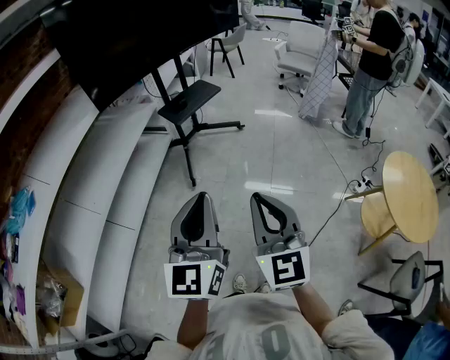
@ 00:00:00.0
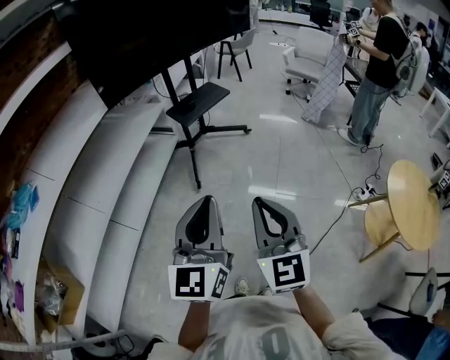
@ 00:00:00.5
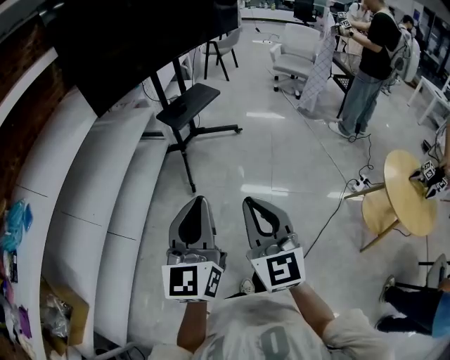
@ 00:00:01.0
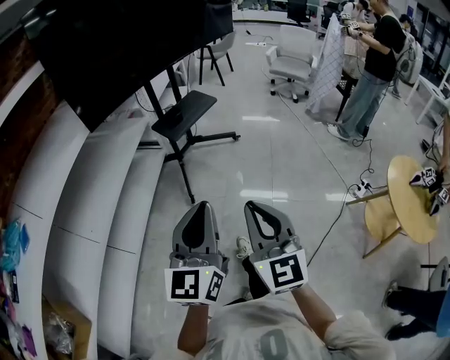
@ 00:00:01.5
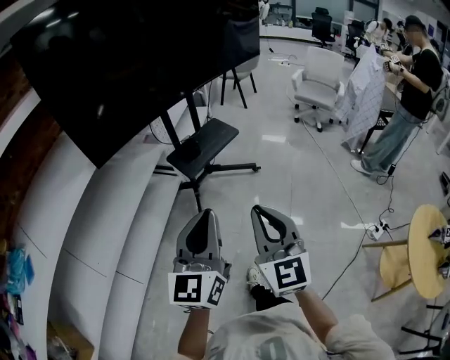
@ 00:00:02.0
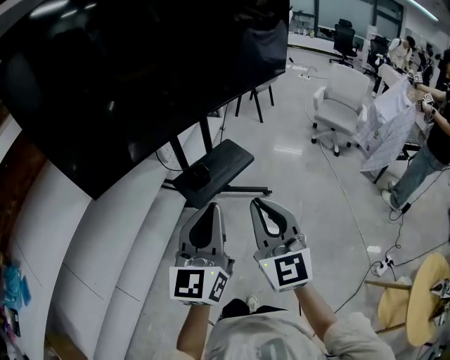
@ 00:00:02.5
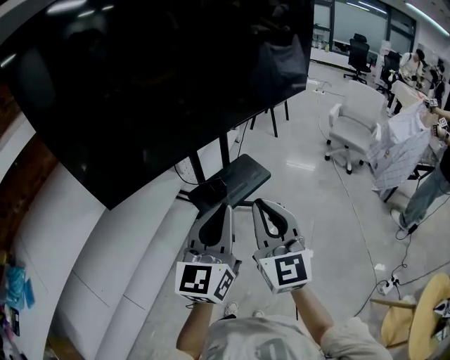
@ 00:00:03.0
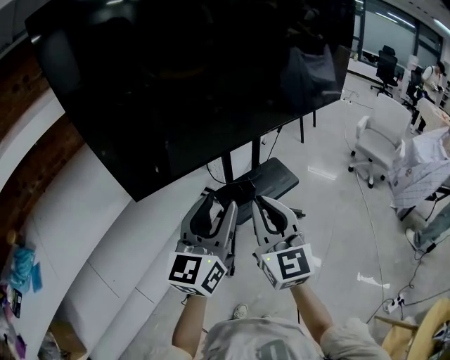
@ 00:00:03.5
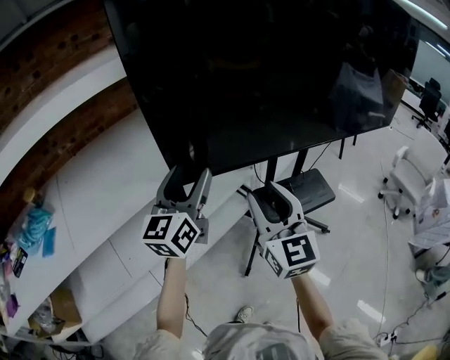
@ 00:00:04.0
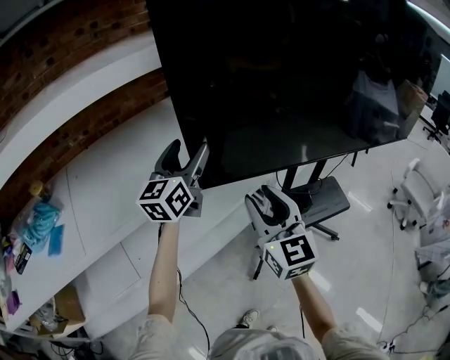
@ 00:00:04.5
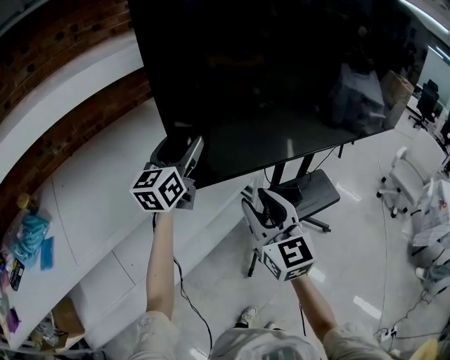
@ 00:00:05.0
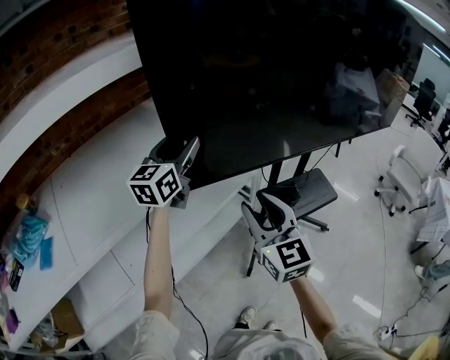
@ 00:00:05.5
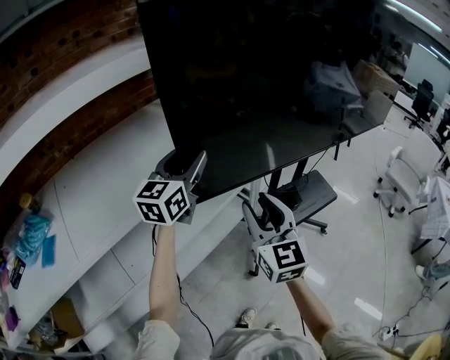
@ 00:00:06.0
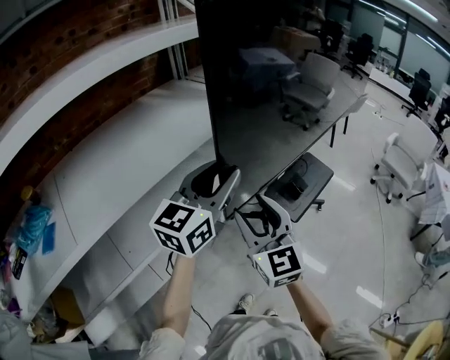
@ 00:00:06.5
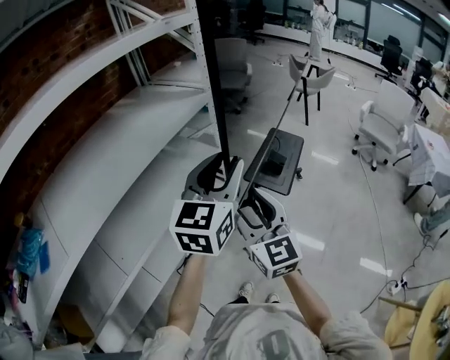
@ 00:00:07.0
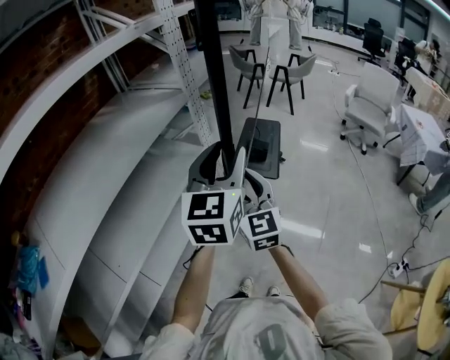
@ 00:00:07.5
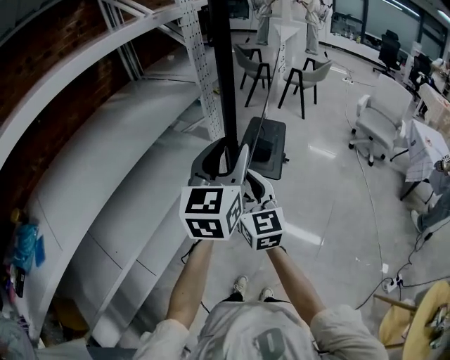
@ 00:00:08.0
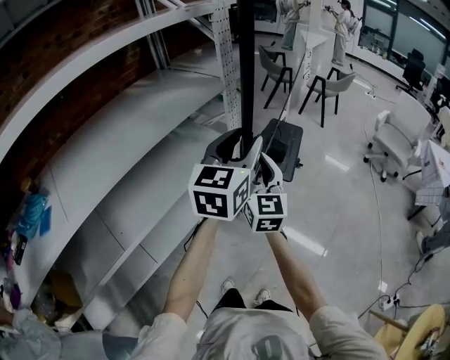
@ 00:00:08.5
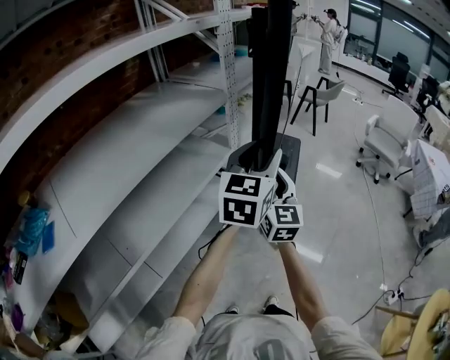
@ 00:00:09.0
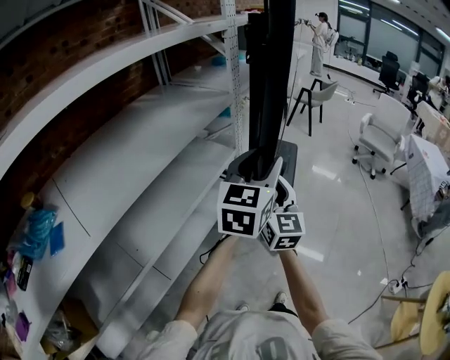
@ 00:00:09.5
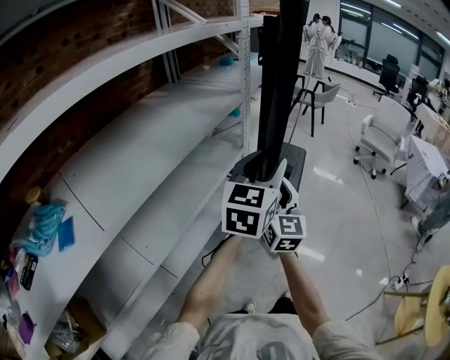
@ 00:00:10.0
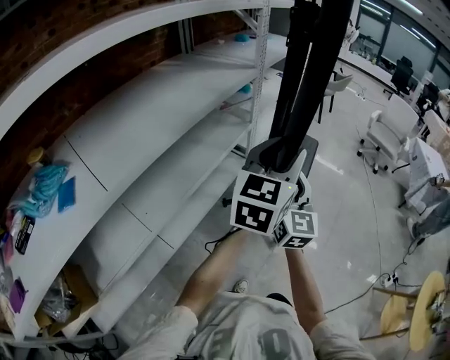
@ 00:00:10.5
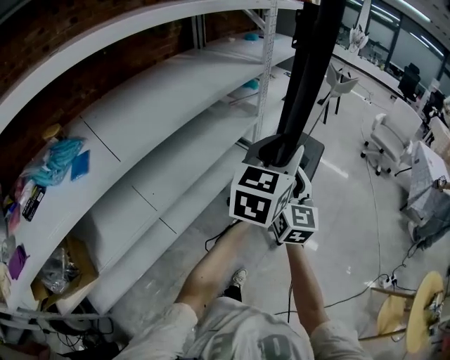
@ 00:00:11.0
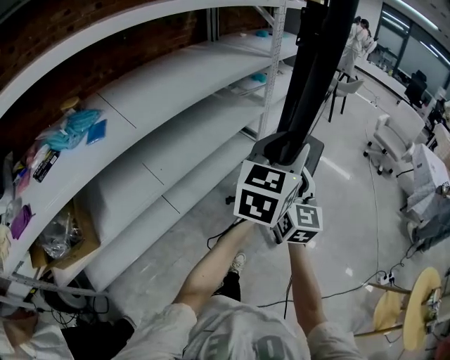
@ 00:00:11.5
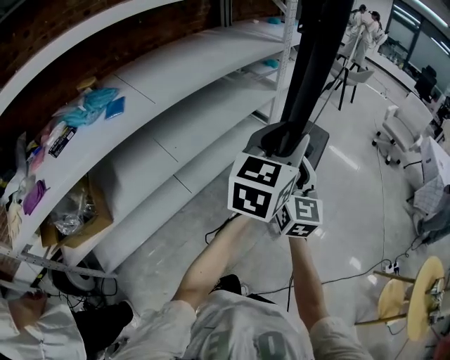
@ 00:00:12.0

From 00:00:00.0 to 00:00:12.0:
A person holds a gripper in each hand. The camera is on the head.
From 00:00:00.0 to 00:00:02.0: The grippers both shift forward by roughly 30 cm.
From 00:00:02.0 to 00:00:04.0: The pair of grippers is taken some 40 cm. The left gripper rotates roughly 20 degrees, and opens up. Meanwhile the right gripper turns by roughly 30 degrees, and opens.
From 00:00:04.0 to 00:00:06.0: The left gripper goes about 5 cm forward; the right gripper moves to the left, roughly 5 cm.
From 00:00:06.0 to 00:00:08.0: The left gripper is displaced to the right and backward by some 35 cm, while the right gripper shifts some 15 cm to the right.
From 00:00:08.0 to 00:00:10.0: The right gripper is displaced to the left and backward by approximately 15 cm. Meanwhile the left gripper heads backward and to the left, covering about 20 cm.
From 00:00:10.0 to 00:00:12.0: Both grippers move backward, roughly 35 cm.

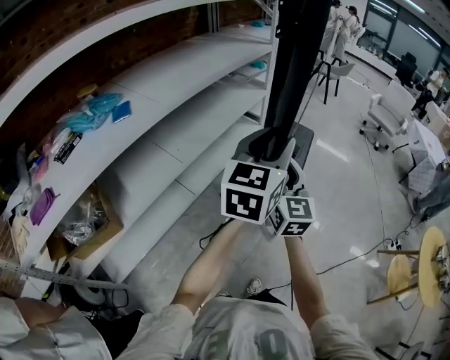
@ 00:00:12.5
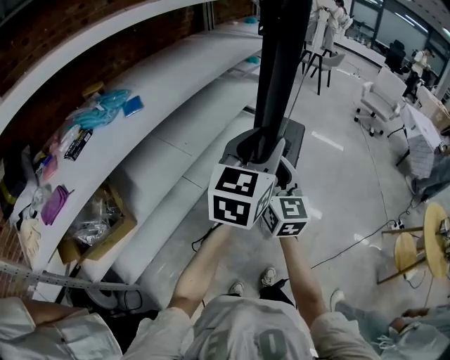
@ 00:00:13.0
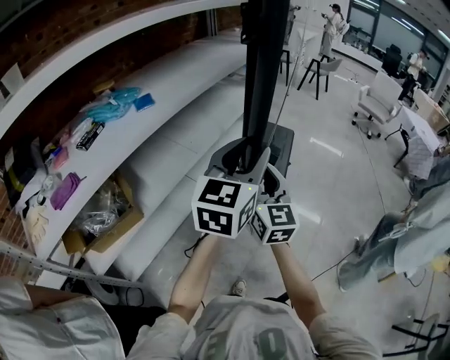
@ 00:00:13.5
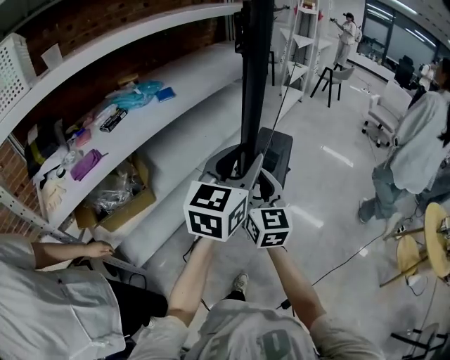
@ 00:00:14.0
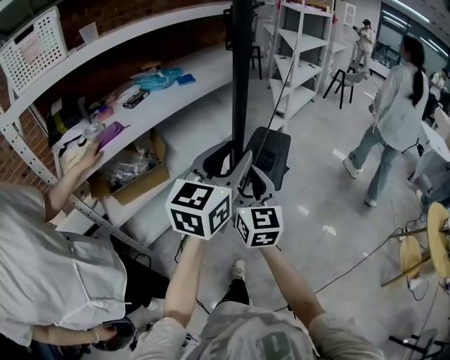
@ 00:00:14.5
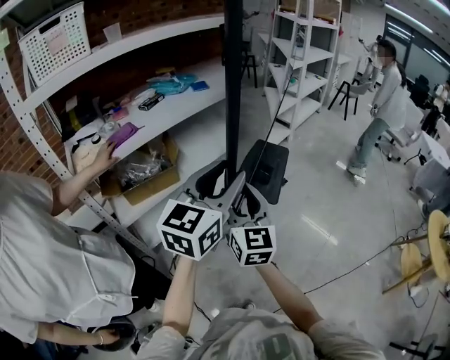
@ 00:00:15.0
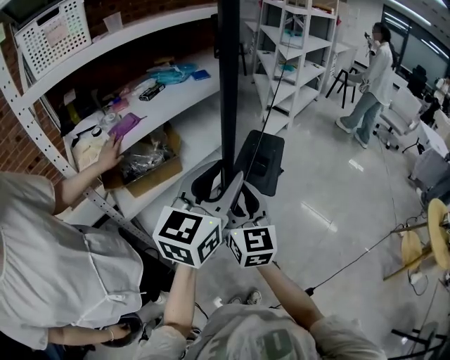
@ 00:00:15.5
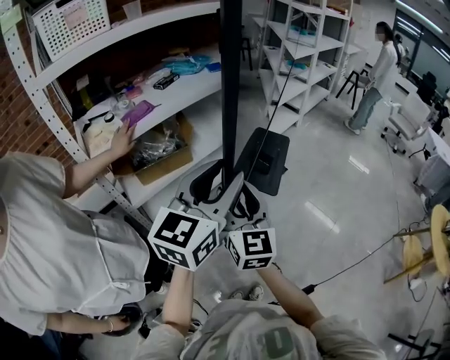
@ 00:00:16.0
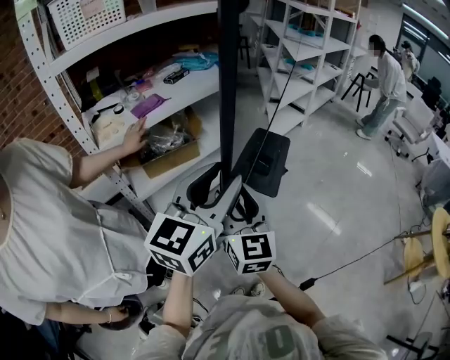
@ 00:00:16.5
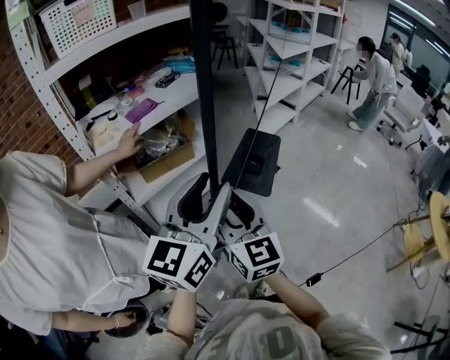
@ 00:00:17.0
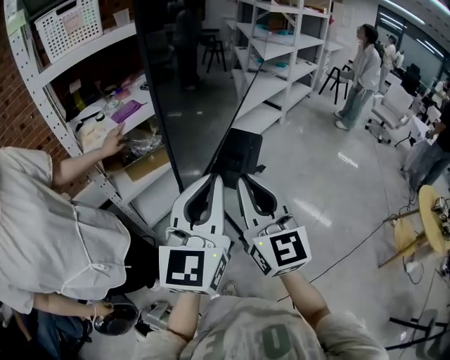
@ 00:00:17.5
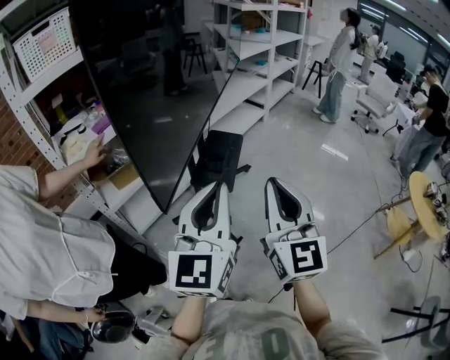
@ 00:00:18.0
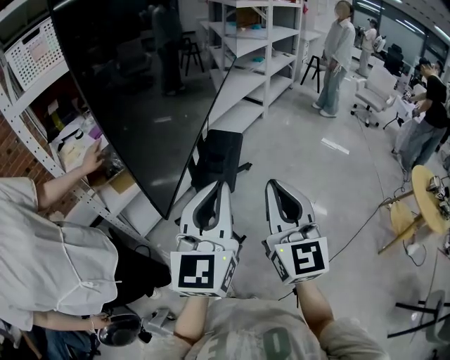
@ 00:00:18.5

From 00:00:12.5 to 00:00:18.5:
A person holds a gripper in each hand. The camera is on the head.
From 00:00:12.5 to 00:00:14.5: The pair of grippers is taken backward and to the left, about 40 cm.
From 00:00:14.5 to 00:00:16.5: The grippers both shift backward and to the left by roughly 25 cm.
From 00:00:16.5 to 00:00:18.5: The right gripper heads to the right, covering approximately 25 cm, and closes. Meanwhile the left gripper is displaced to the right and backward by about 15 cm, and closes its fingers.

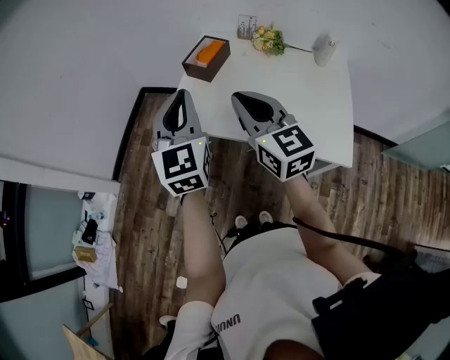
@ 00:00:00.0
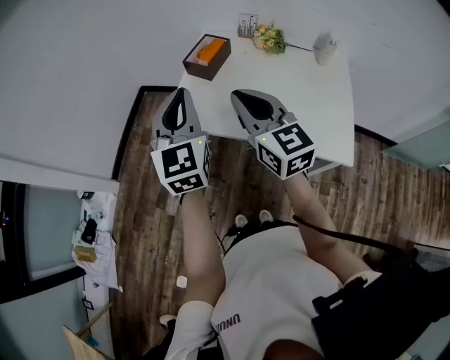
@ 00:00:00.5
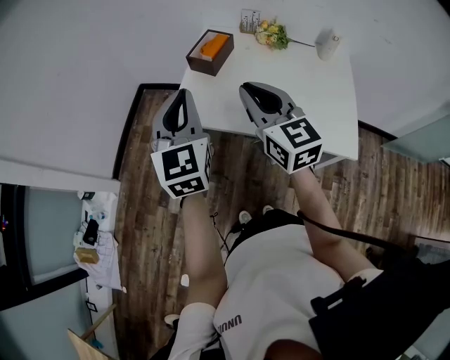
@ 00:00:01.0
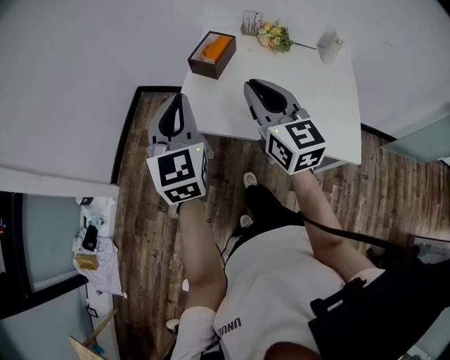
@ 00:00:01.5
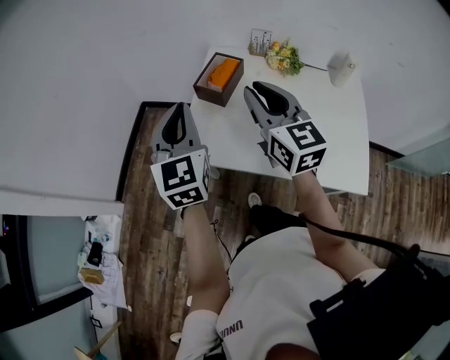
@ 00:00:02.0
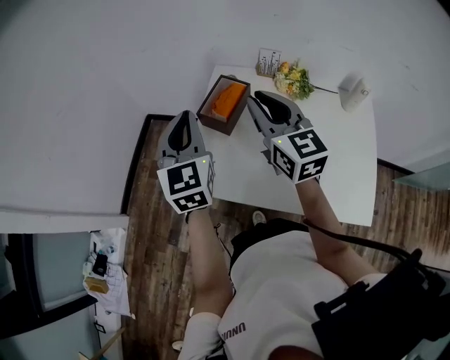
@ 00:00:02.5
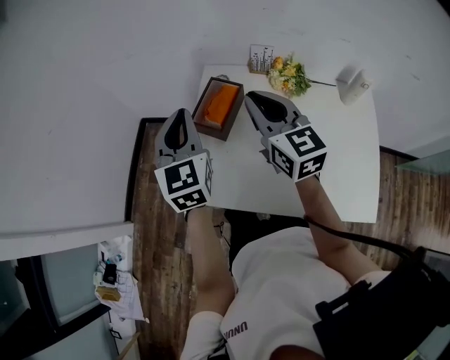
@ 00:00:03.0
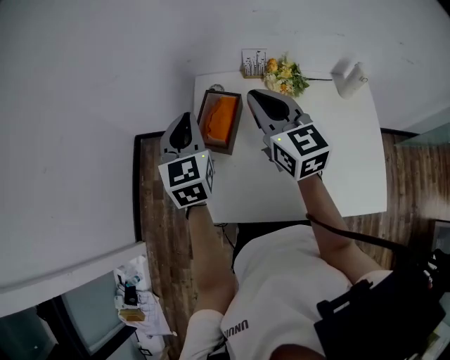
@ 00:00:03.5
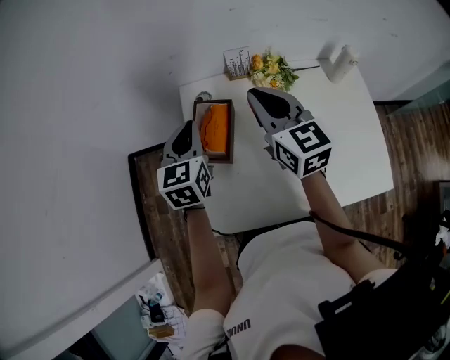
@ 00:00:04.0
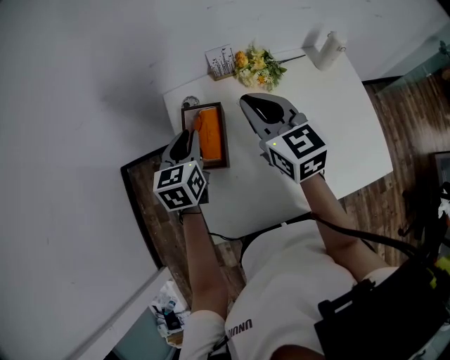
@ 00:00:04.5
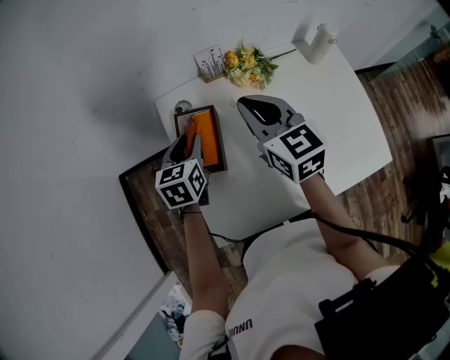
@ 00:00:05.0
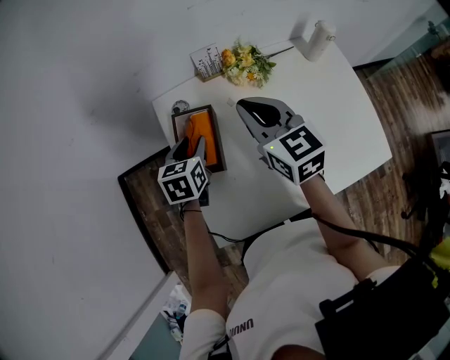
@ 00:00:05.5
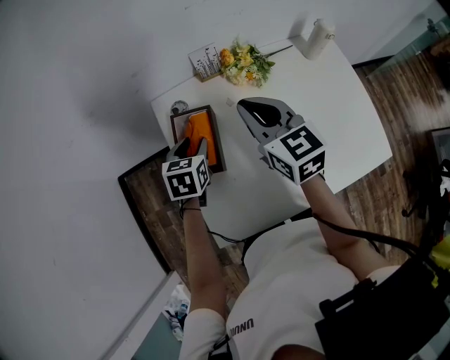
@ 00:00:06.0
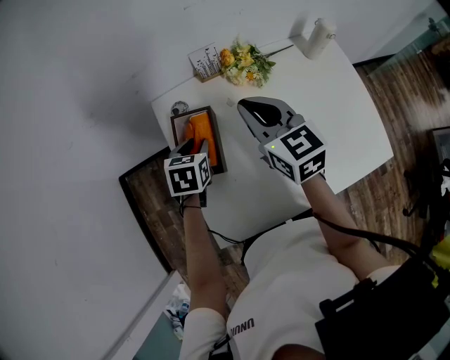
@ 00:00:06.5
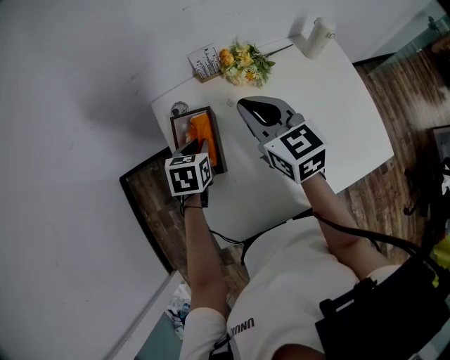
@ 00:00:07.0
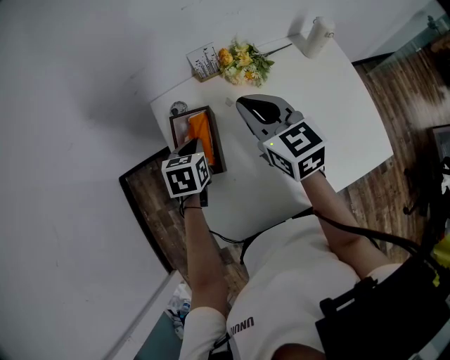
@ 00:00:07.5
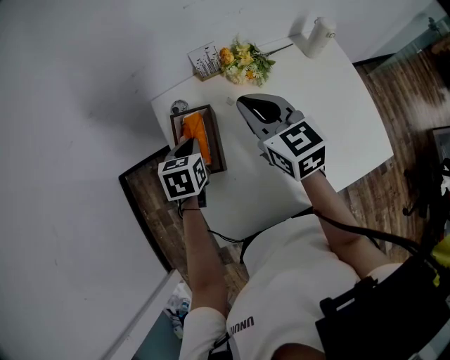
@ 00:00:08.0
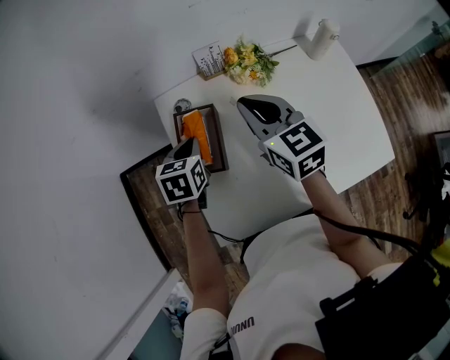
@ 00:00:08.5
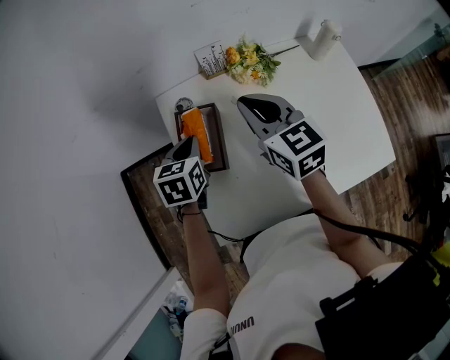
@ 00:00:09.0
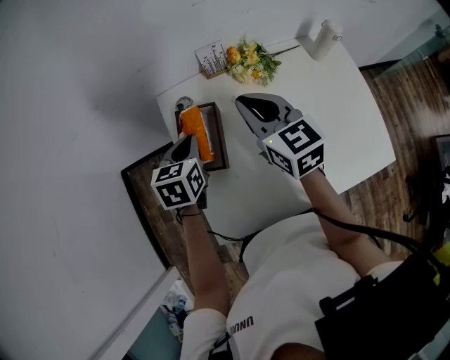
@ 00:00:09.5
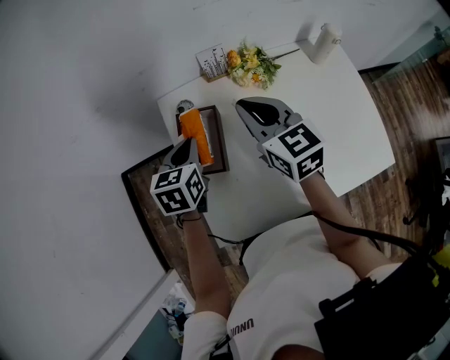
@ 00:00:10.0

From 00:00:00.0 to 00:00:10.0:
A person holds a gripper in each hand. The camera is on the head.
From 00:00:00.0 to 00:00:02.0: The two grippers go some 10 cm forward.
From 00:00:02.0 to 00:00:04.0: Both grippers travel together forward, about 25 cm. The left gripper swivels approximately 30 degrees.
From 00:00:04.0 to 00:00:06.0: The left gripper goes approximately 15 cm downward, changes its angle by some 30 degrees, and opens its fingers, while the right gripper heads downward, covering roughly 5 cm.
From 00:00:06.0 to 00:00:08.0: The left gripper closes.
From 00:00:08.0 to 00:00:10.0: The left gripper travels upward by about 5 cm.
